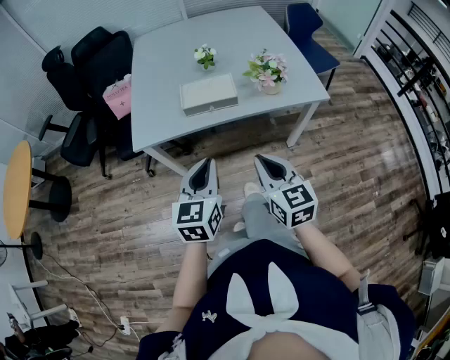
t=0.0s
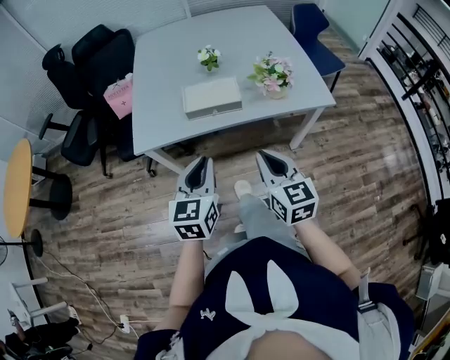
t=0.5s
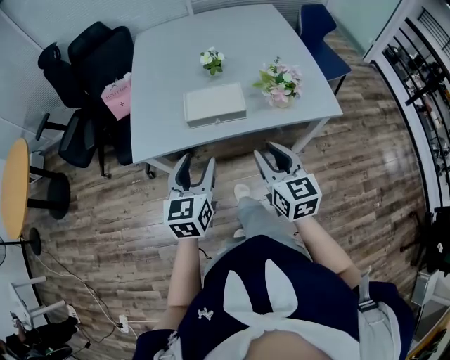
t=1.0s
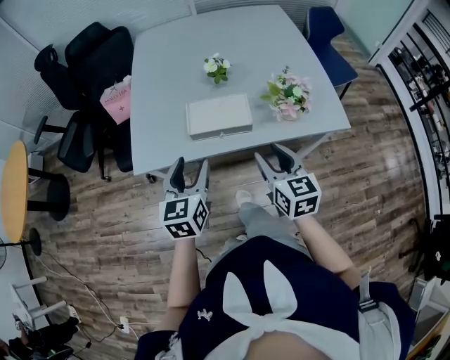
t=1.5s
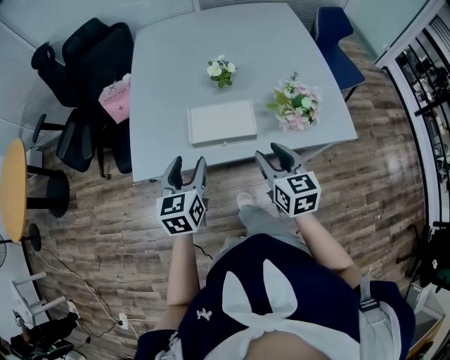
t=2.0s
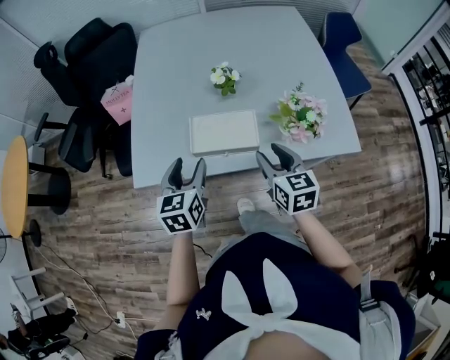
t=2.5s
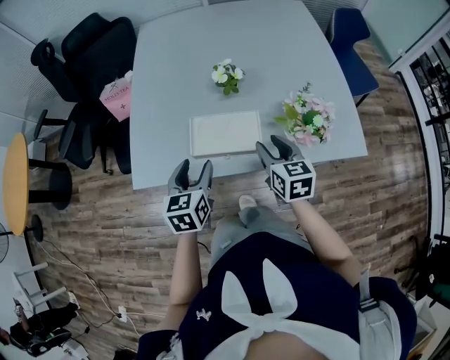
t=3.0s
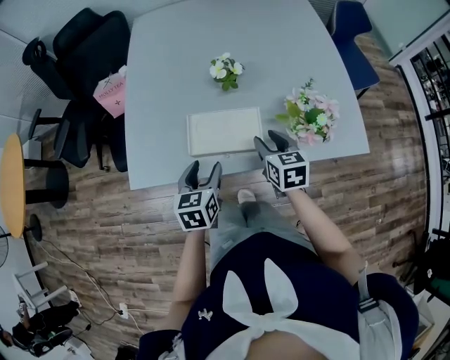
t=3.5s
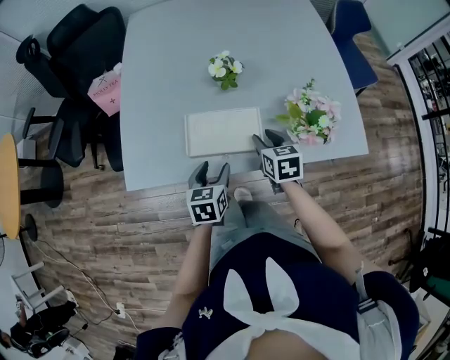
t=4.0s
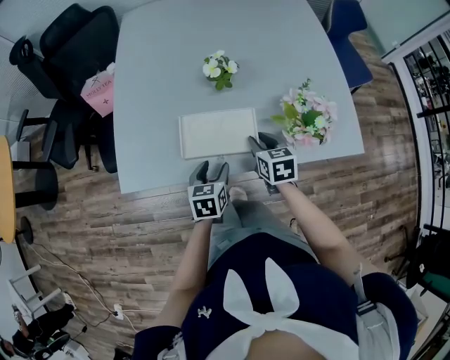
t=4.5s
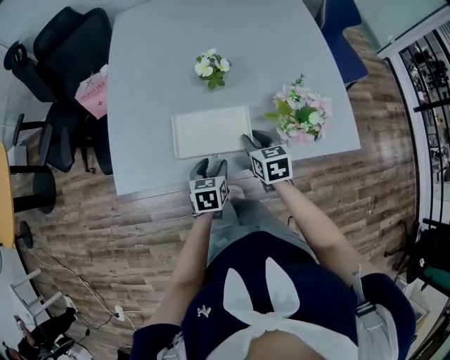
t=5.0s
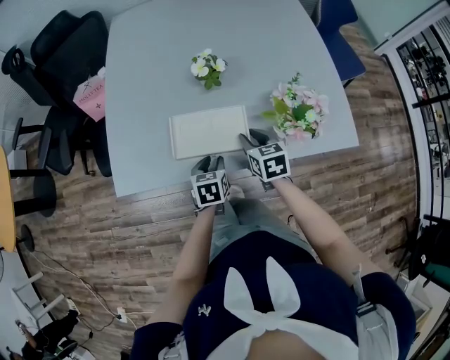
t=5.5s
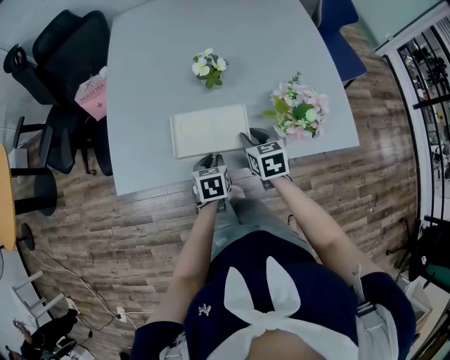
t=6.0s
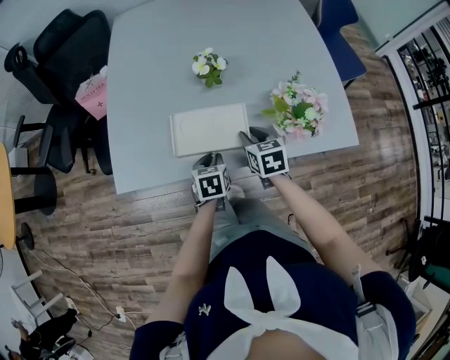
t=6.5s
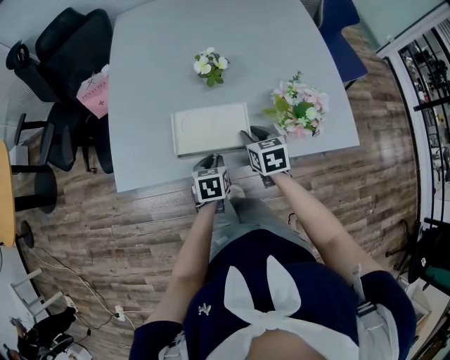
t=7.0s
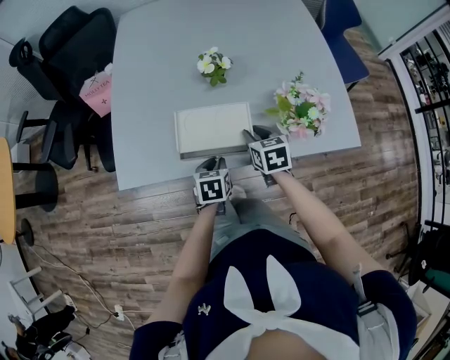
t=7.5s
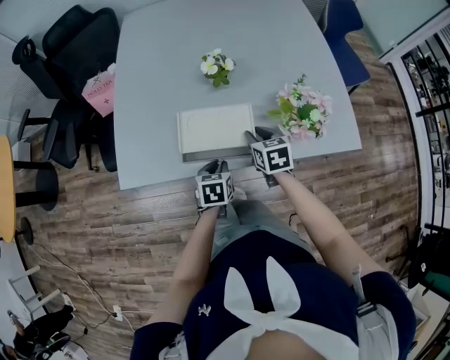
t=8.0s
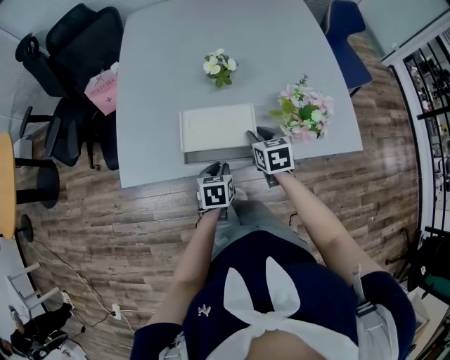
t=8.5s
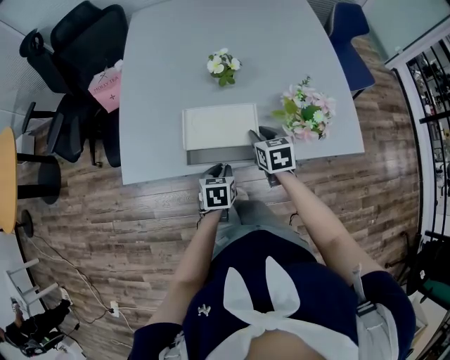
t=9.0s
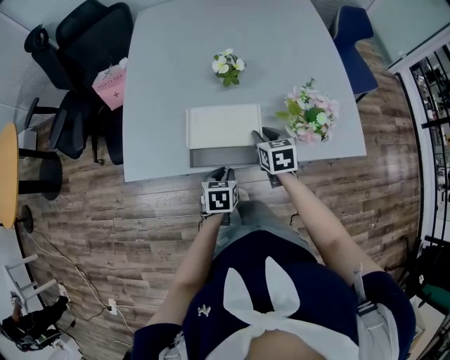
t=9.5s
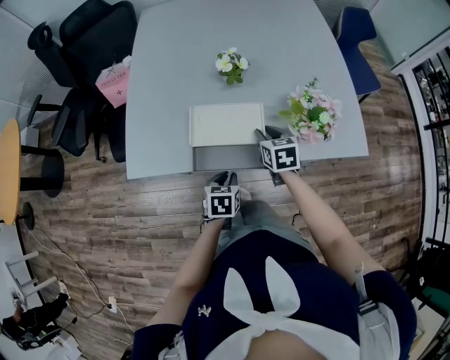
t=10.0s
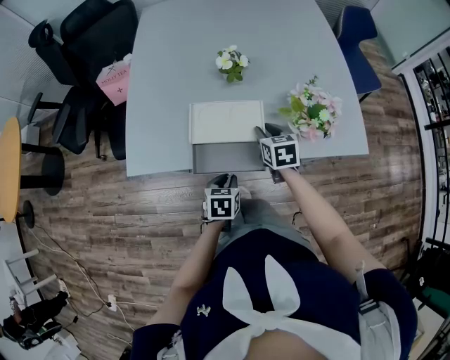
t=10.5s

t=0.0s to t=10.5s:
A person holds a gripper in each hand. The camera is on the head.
t=0.0s to t=2.0s: Both grippers move forward, roughly 25 cm. The left gripper opens up. Meanwhile the right gripper opens up.
t=2.0s to t=4.0s: The right gripper goes some 20 cm forward and downward. The left gripper heads downward and to the right, covering about 15 cm.
t=4.0s to t=6.5s: The left gripper heads downward, covering some 5 cm, and closes its fingers.
t=6.5s to t=8.5s: The grippers move only a little.
t=8.5s to t=10.5s: The left gripper shifts approximately 5 cm backward.

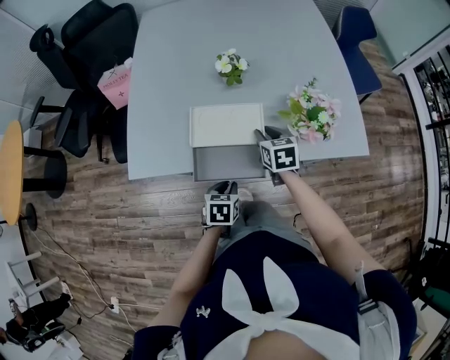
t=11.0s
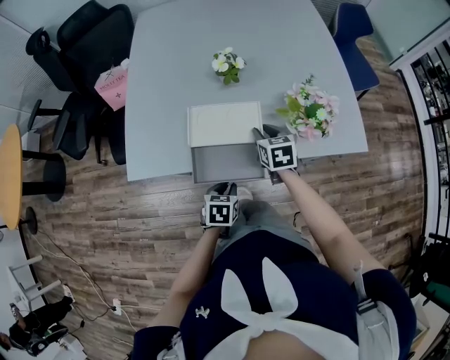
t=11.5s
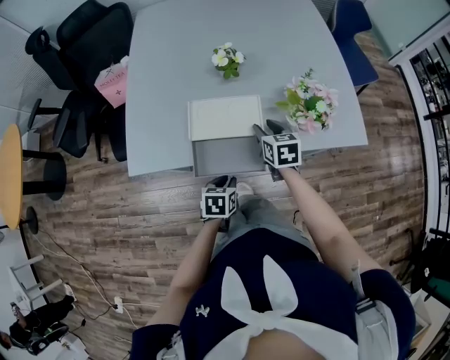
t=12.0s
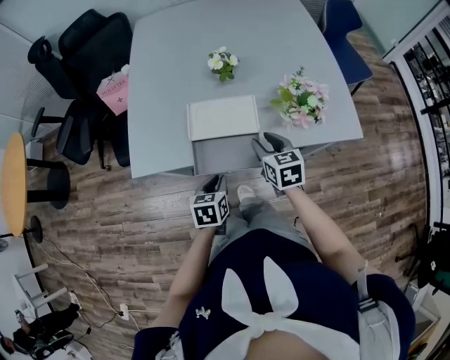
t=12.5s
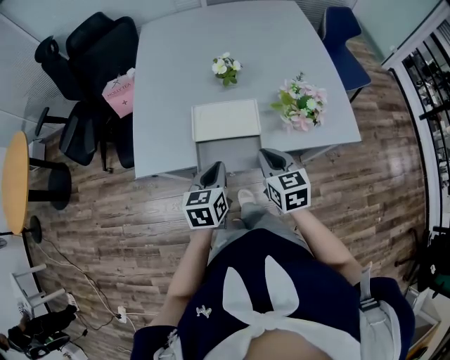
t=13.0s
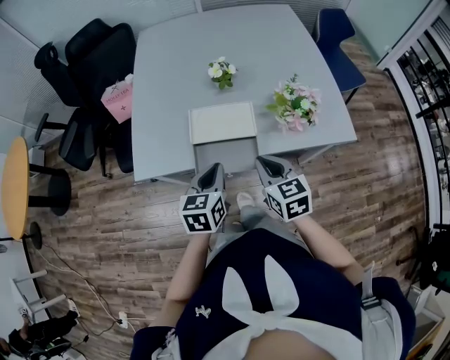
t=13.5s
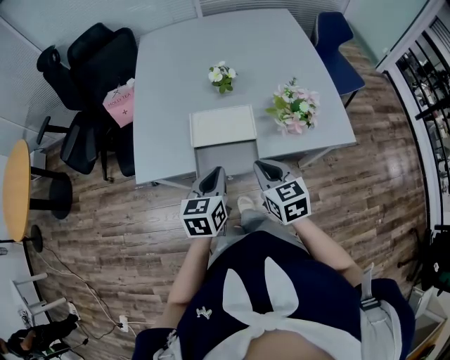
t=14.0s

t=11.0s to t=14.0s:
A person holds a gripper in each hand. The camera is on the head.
t=11.0s to t=12.5s: The right gripper shifts approximately 10 cm backward and upward; the left gripper is displaced upward by about 5 cm.
t=12.5s to t=14.0s: The right gripper heads backward and upward, covering approximately 10 cm, and closes; the left gripper moves upward, roughly 15 cm.

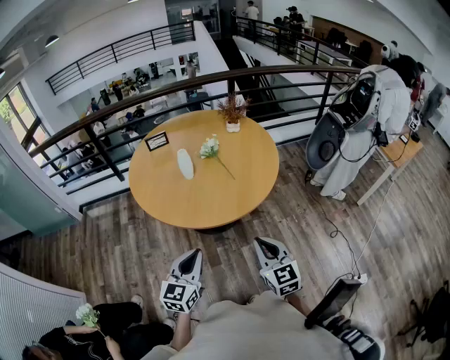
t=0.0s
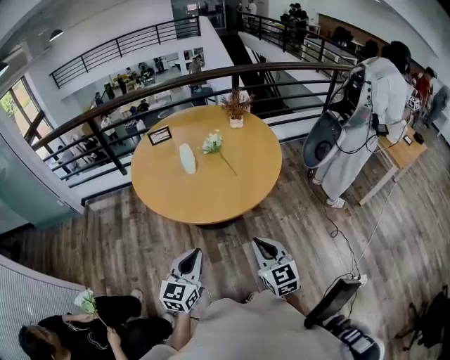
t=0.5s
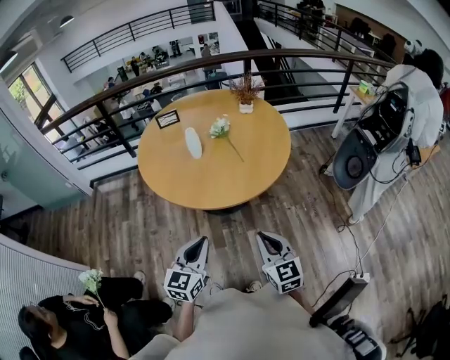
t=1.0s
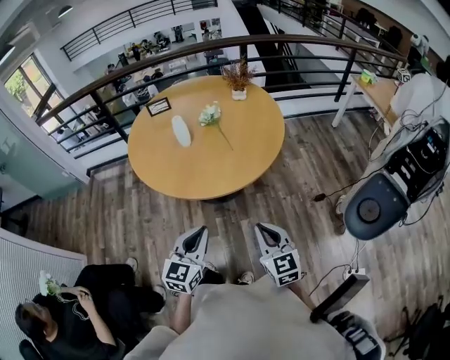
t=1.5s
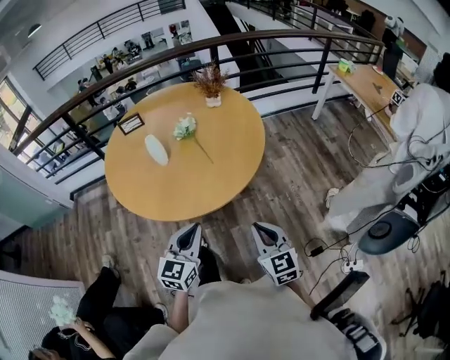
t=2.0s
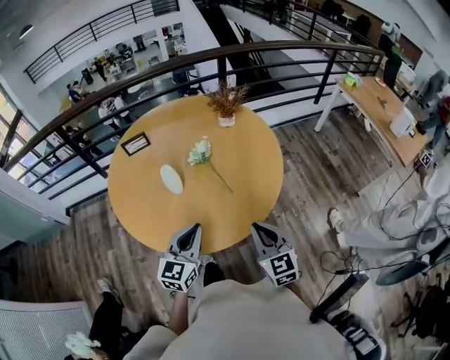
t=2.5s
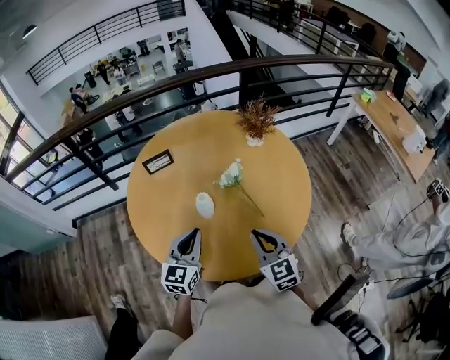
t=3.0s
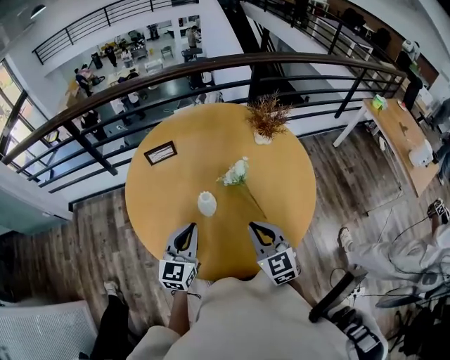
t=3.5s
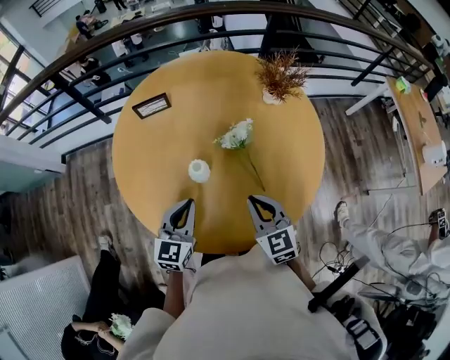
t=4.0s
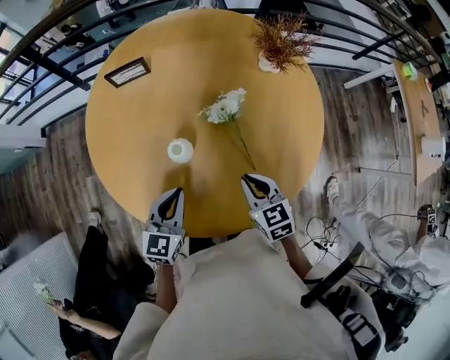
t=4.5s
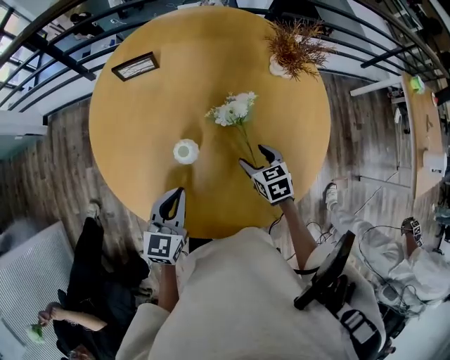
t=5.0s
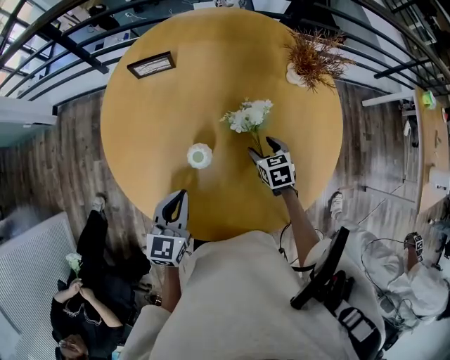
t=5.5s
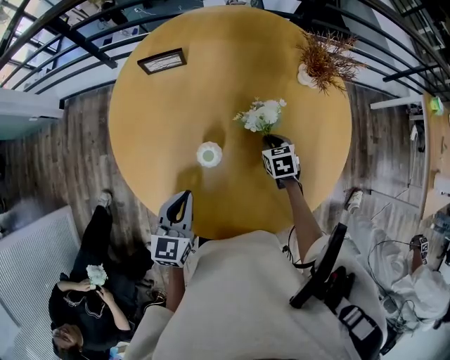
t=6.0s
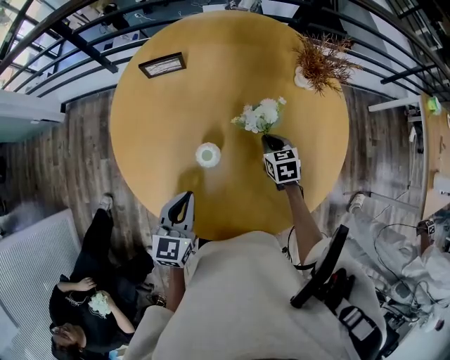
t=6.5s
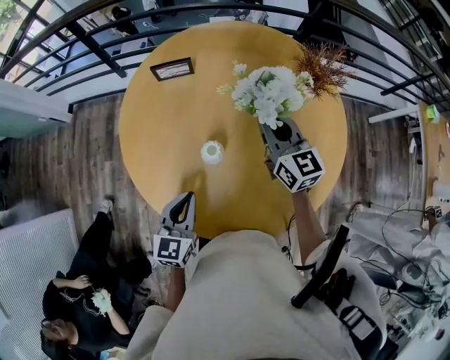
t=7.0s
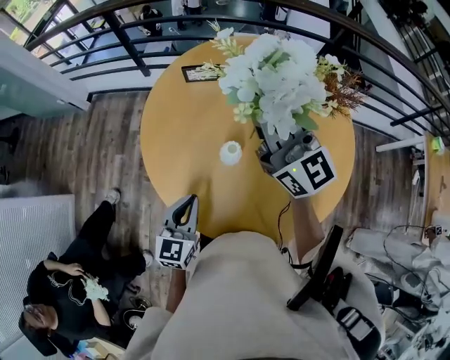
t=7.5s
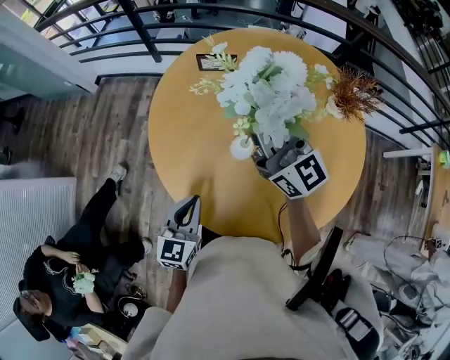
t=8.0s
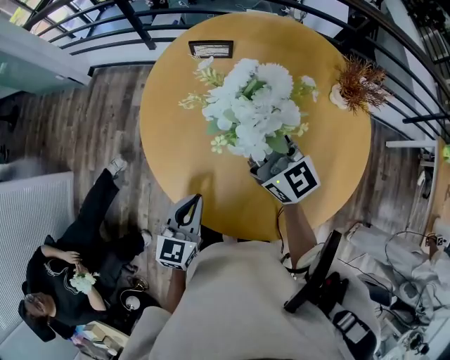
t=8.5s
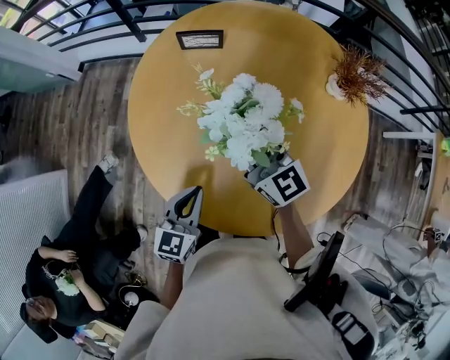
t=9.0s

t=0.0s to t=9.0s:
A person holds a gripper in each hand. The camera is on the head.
t=0.0s to t=2.0s: The left gripper moves to the right and forward, about 15 cm. The right gripper travels to the right, forward and downward by approximately 10 cm.
t=2.0s to t=4.5s: Both grippers travel together forward and to the left, about 30 cm. The right gripper swivels some 30 degrees.
t=4.5s to t=7.0s: The right gripper goes some 25 cm forward and upward, points its fingers some 30 degrees further upward, and opens and closes again.
t=7.0s to t=9.0s: The right gripper goes some 15 cm to the left, reaches some 15 cm upward, then returns, and swivels about 20 degrees.

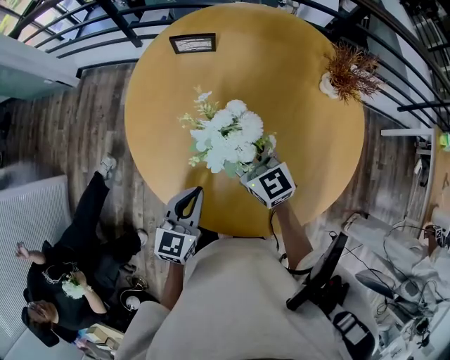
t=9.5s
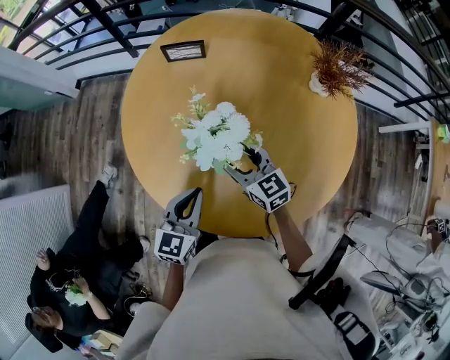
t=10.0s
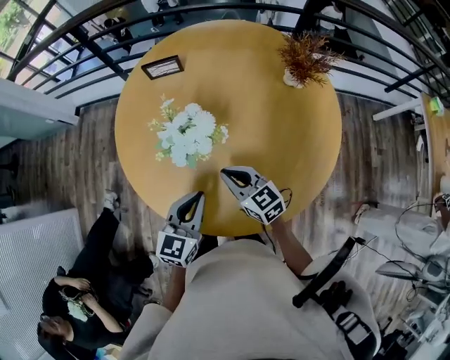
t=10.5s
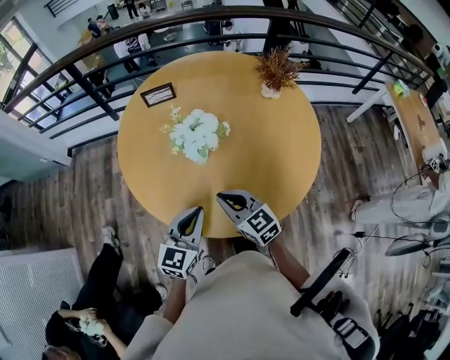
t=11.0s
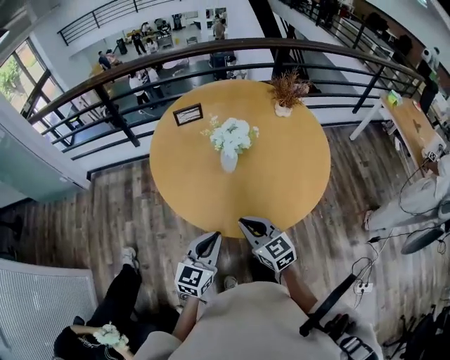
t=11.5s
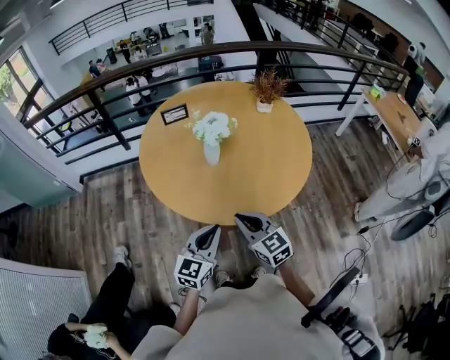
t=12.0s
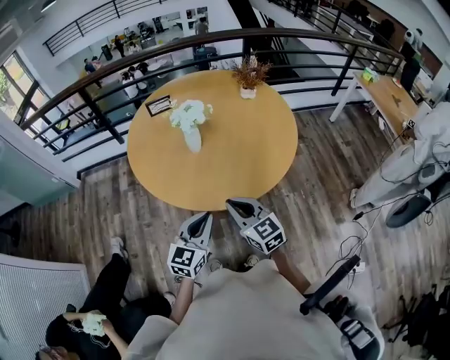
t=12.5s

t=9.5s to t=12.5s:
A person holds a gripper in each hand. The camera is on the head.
t=9.5s to t=11.0s: The left gripper goes some 5 cm backward. Meanwhile the right gripper moves backward, approximately 15 cm, and closes its fingers.
t=11.0s to t=12.5s: Both grippers move backward, some 15 cm.

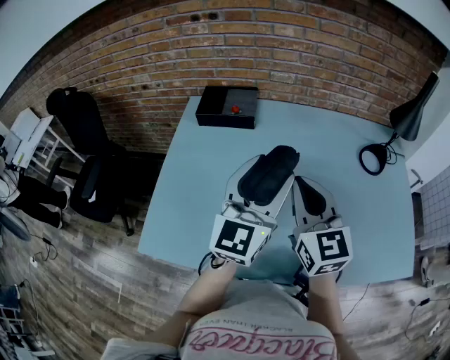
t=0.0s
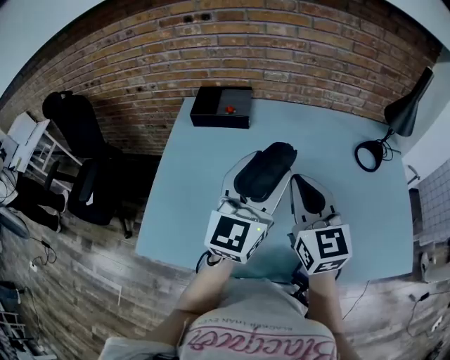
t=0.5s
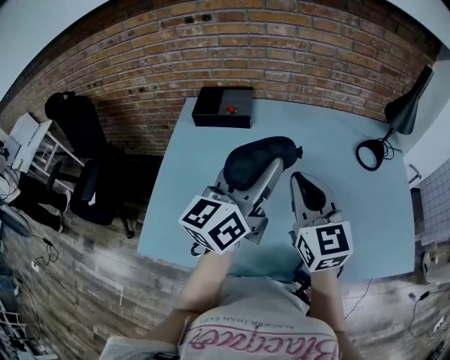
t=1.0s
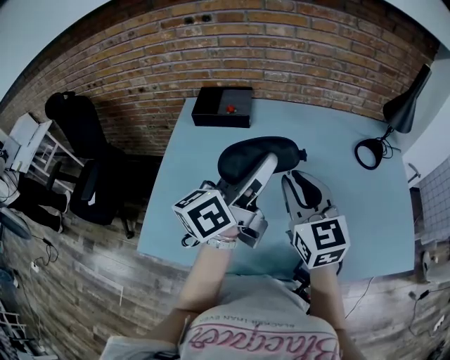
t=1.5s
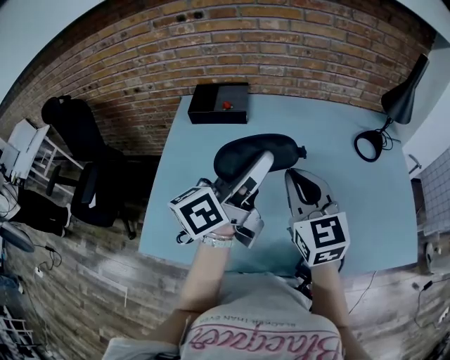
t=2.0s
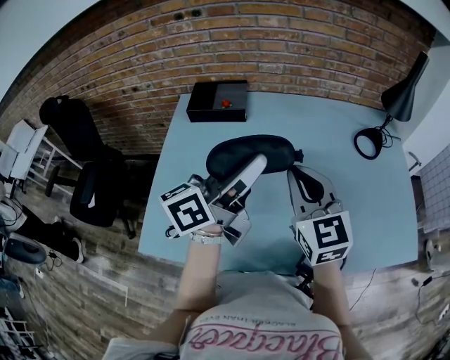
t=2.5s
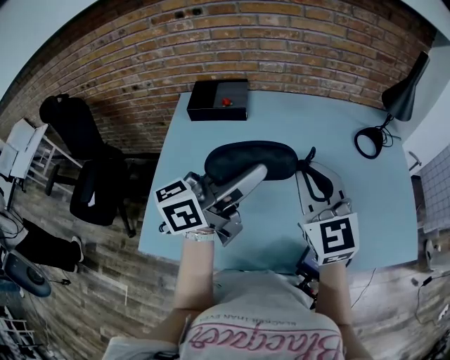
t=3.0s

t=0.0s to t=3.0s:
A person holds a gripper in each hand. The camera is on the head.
t=0.0s to t=1.5s: The left gripper rotates around the line of its fingers by about 50 degrees, counterclockwise from behind.
t=1.5s to t=3.0s: There are only small adjustments of the grippers.
